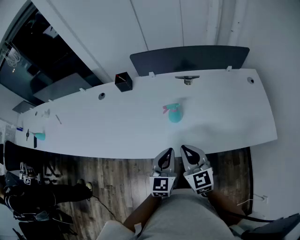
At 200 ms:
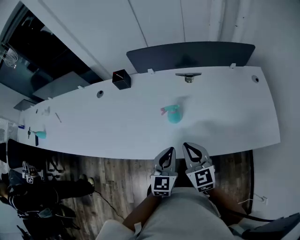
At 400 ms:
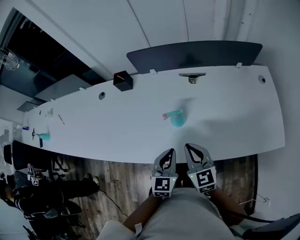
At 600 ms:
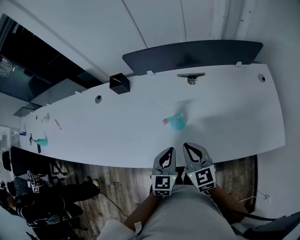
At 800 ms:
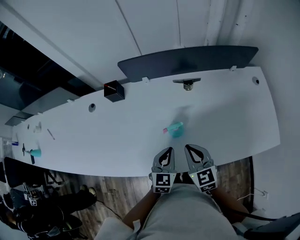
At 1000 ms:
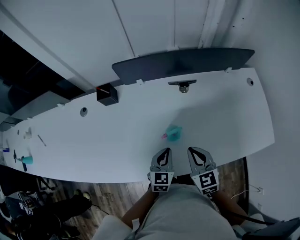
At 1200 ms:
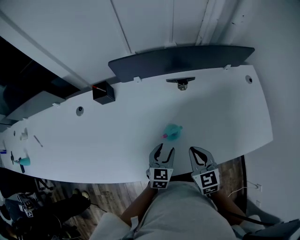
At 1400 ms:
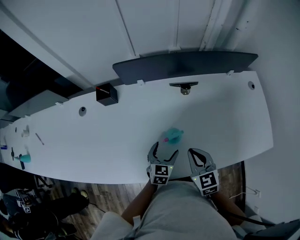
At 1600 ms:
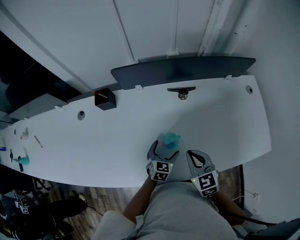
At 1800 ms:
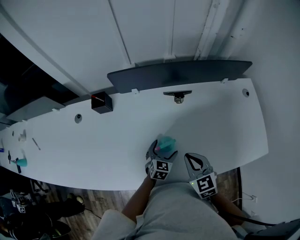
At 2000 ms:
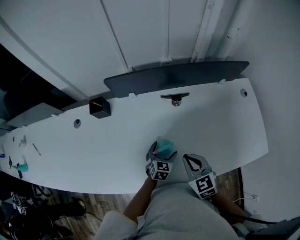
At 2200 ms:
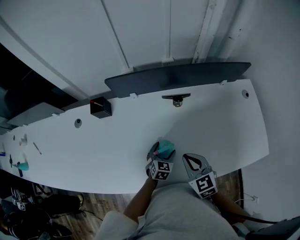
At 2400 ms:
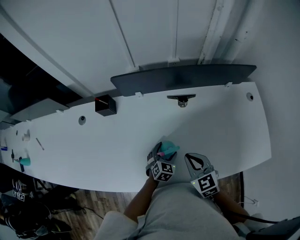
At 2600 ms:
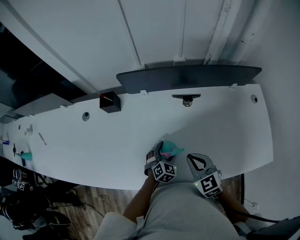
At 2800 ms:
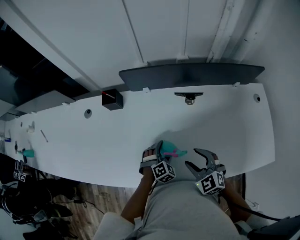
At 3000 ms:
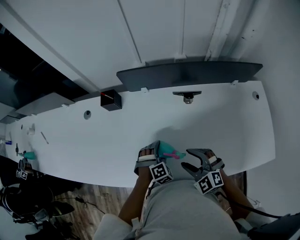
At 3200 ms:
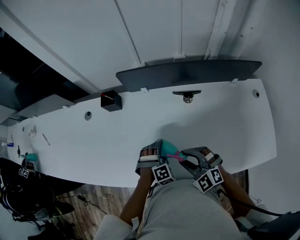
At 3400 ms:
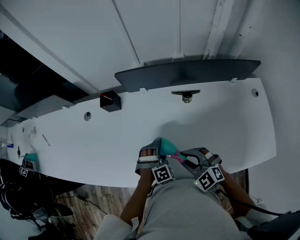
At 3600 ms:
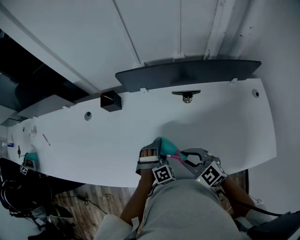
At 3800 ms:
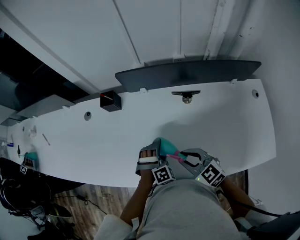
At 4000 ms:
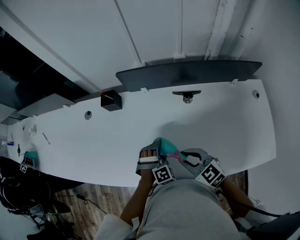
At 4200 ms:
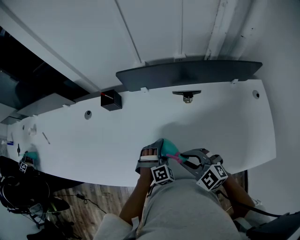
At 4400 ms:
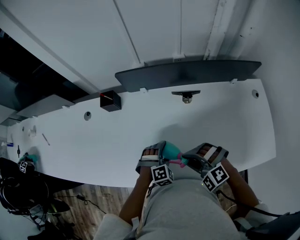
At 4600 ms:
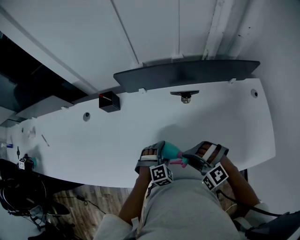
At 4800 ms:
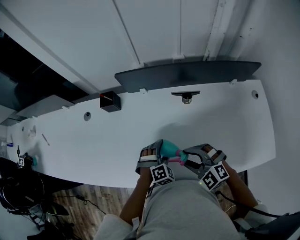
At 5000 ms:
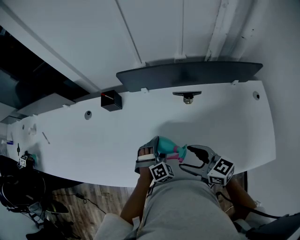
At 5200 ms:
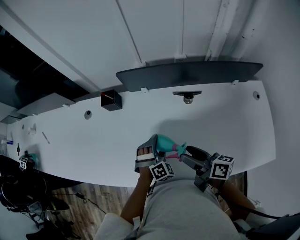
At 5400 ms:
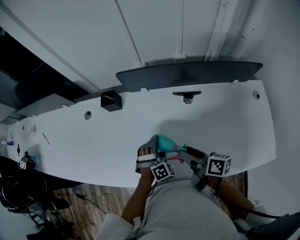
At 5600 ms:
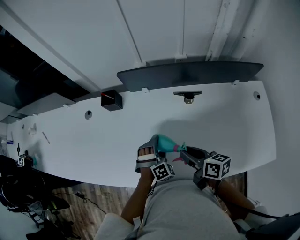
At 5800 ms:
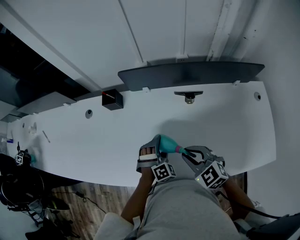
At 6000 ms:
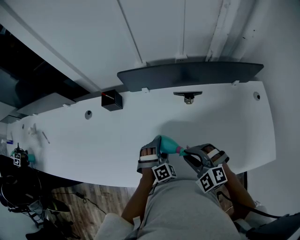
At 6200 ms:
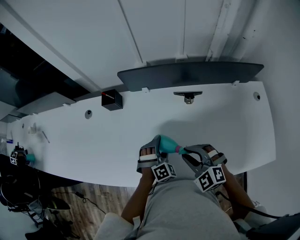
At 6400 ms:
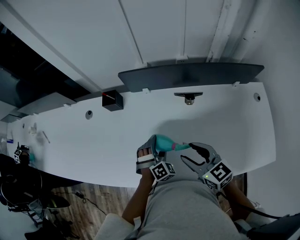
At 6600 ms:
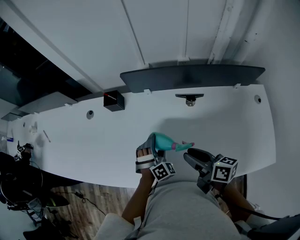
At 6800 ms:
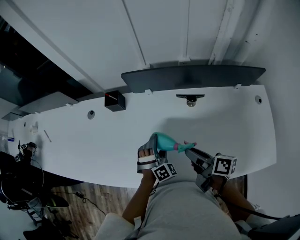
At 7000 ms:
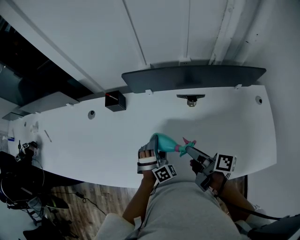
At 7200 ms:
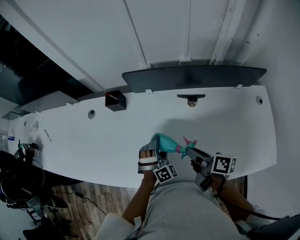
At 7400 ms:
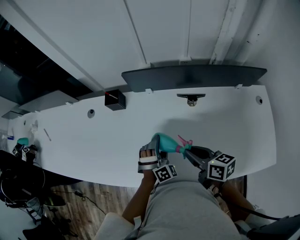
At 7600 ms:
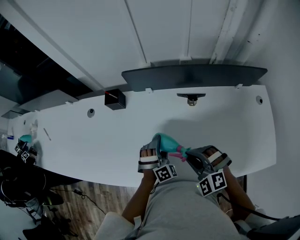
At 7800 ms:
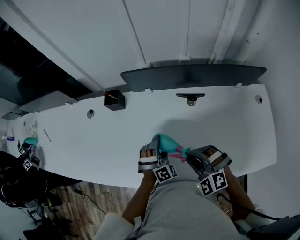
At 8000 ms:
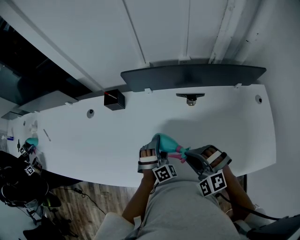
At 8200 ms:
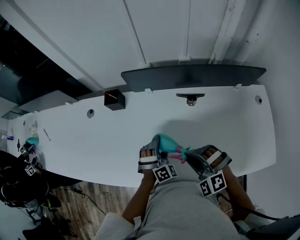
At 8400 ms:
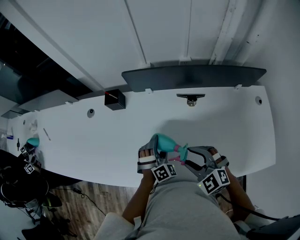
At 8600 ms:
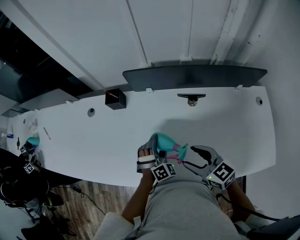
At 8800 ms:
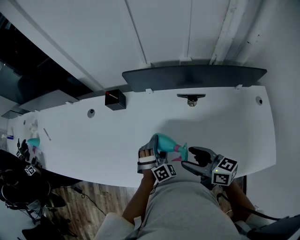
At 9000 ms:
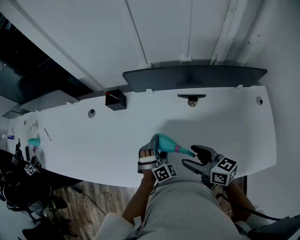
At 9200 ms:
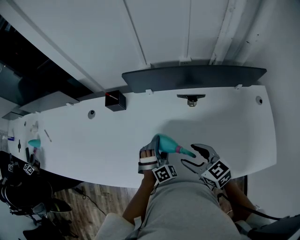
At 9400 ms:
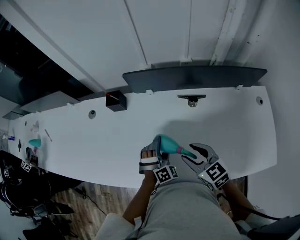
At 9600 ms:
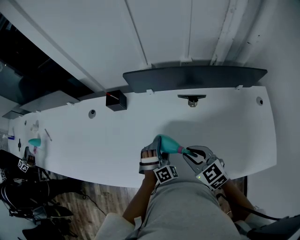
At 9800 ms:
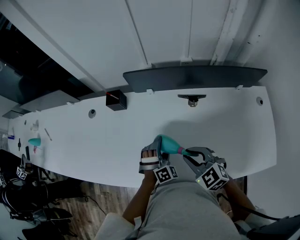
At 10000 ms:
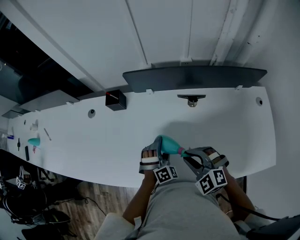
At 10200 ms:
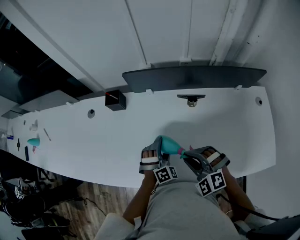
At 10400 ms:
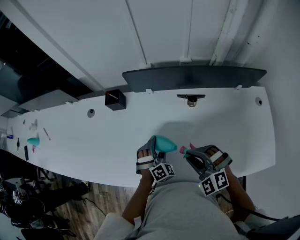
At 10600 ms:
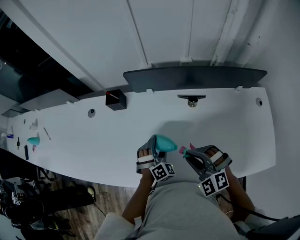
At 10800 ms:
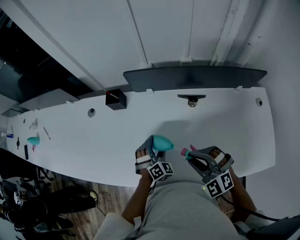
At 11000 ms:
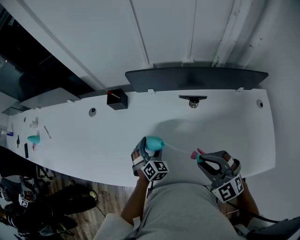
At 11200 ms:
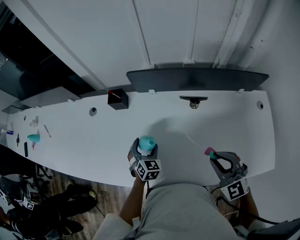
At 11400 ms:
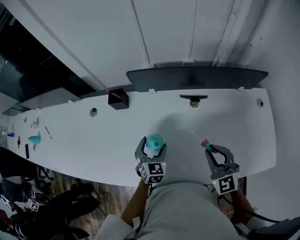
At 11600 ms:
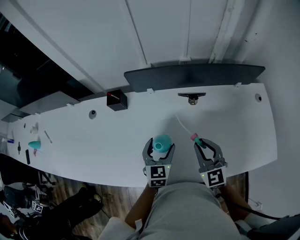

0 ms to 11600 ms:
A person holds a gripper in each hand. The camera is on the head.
0 ms to 1400 ms: Both grippers move forward and downward, approximately 20 cm. The left gripper rotates about 20 degrees, and opens its fingers.
1400 ms to 2800 ms: The right gripper turns by approximately 30 degrees, and opens its fingers, while the left gripper twists about 40 degrees clockwise, seen from behind.
2800 ms to 4400 ms: The right gripper changes its angle by some 40 degrees, and closes.
4400 ms to 5800 ms: The left gripper ends up roughly 5 cm from where it was. Meanwhile the right gripper rotates around the line of its fingers by roughly 40 degrees, clockwise from behind, and opens and closes again.
5800 ms to 7200 ms: The right gripper rolls clockwise, seen from behind, by some 80 degrees.
7200 ms to 8800 ms: The right gripper moves about 5 cm, rotates roughly 40 degrees, and opens its fingers.
8800 ms to 10200 ms: The right gripper rotates around the line of its fingers by approximately 80 degrees, counterclockwise from behind, and closes.
10200 ms to 11600 ms: The left gripper moves upward, some 5 cm, moves approximately 10 cm to the left and comes back, and rolls counterclockwise, seen from behind, by about 60 degrees, while the right gripper goes some 5 cm to the right, and changes its angle by some 50 degrees.

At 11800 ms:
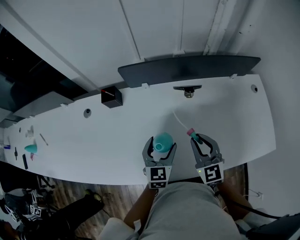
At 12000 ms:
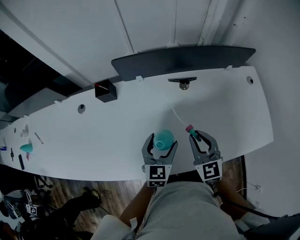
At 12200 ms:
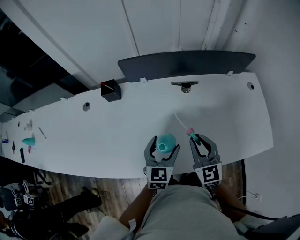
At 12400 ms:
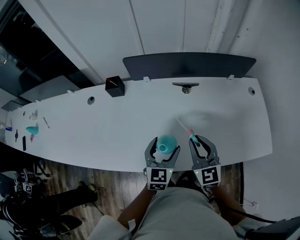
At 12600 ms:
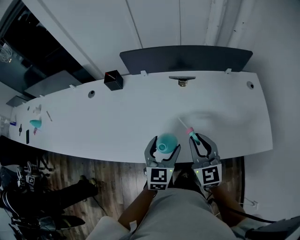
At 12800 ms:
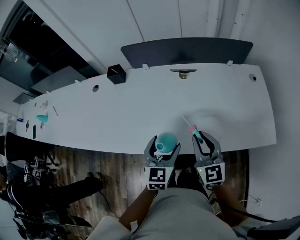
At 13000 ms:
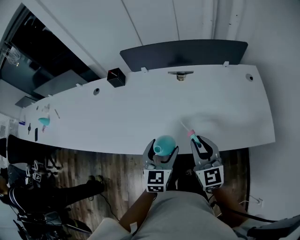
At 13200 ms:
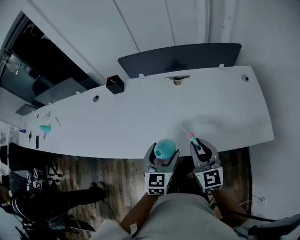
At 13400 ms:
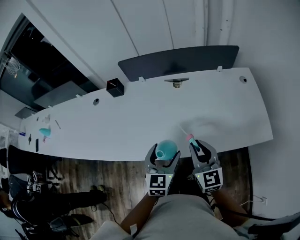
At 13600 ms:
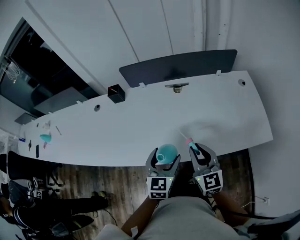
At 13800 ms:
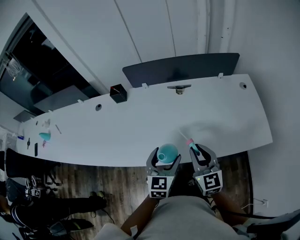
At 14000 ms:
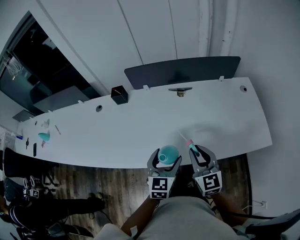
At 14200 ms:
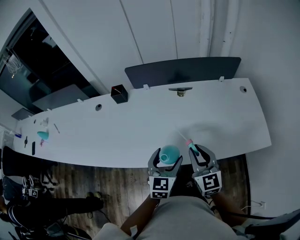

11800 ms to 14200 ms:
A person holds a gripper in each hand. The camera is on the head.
11800 ms to 13000 ms: The grippers both shift backward and to the right by roughly 20 cm.
13000 ms to 14200 ms: The right gripper moves some 5 cm.

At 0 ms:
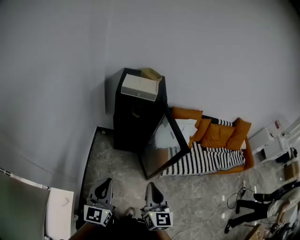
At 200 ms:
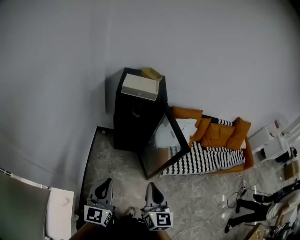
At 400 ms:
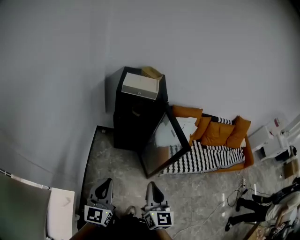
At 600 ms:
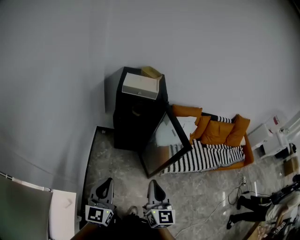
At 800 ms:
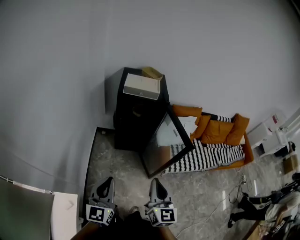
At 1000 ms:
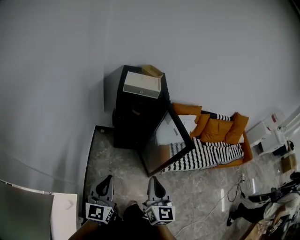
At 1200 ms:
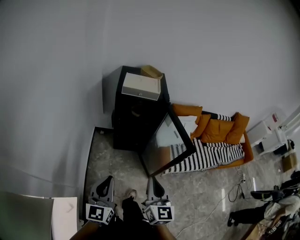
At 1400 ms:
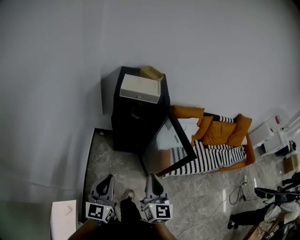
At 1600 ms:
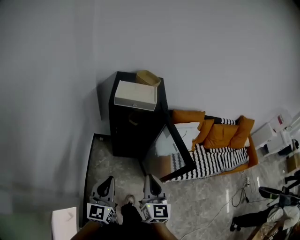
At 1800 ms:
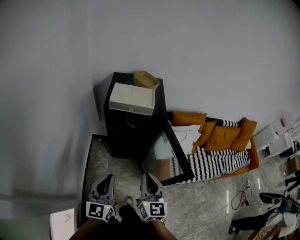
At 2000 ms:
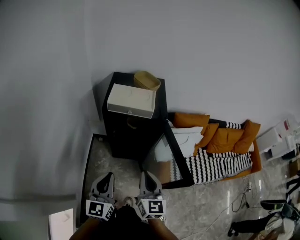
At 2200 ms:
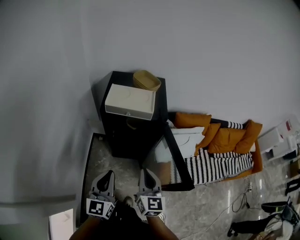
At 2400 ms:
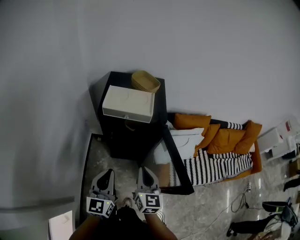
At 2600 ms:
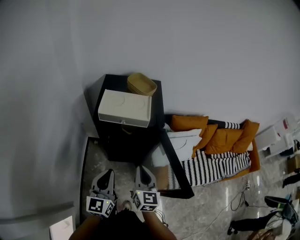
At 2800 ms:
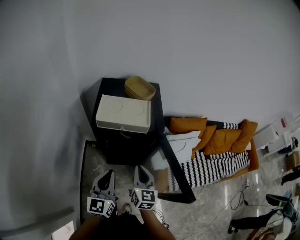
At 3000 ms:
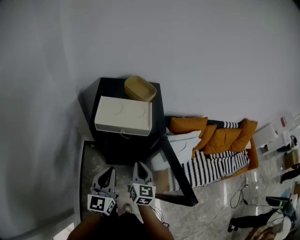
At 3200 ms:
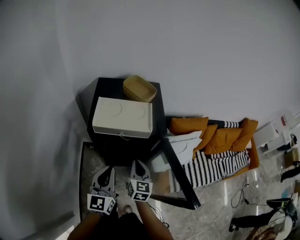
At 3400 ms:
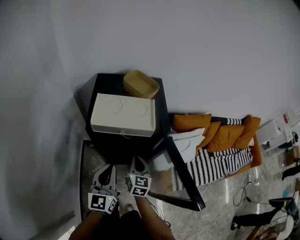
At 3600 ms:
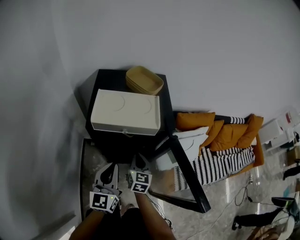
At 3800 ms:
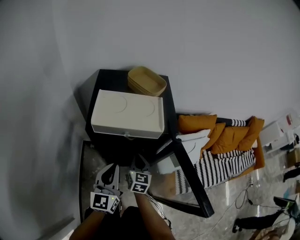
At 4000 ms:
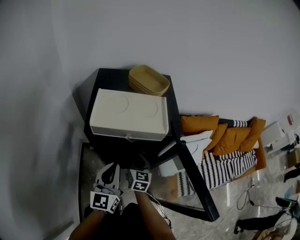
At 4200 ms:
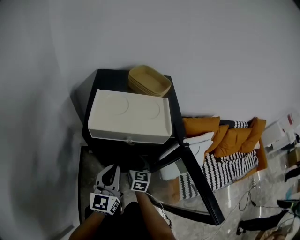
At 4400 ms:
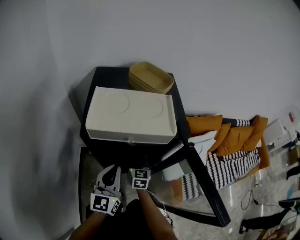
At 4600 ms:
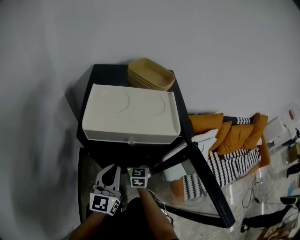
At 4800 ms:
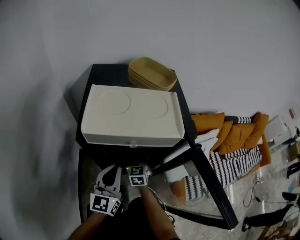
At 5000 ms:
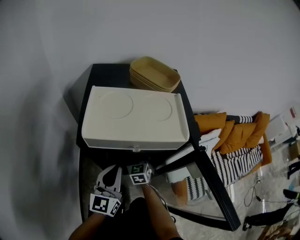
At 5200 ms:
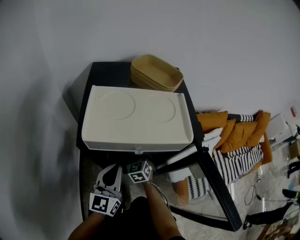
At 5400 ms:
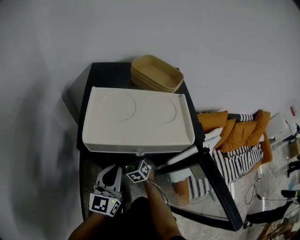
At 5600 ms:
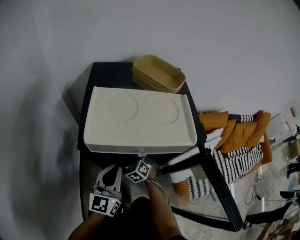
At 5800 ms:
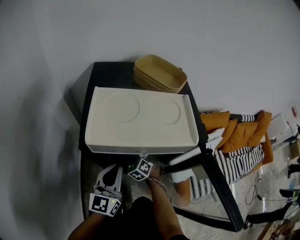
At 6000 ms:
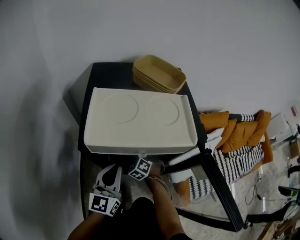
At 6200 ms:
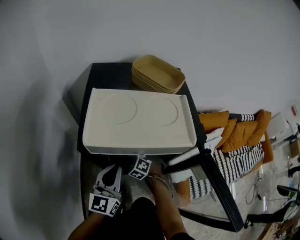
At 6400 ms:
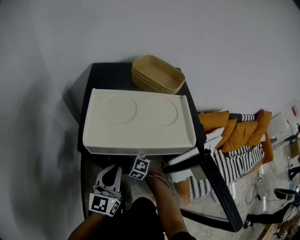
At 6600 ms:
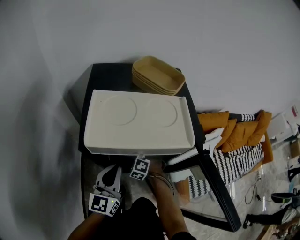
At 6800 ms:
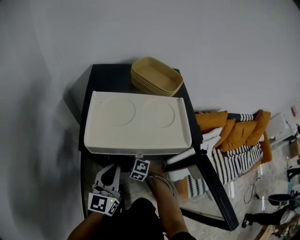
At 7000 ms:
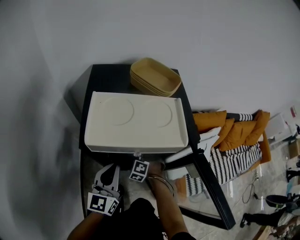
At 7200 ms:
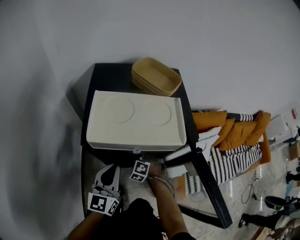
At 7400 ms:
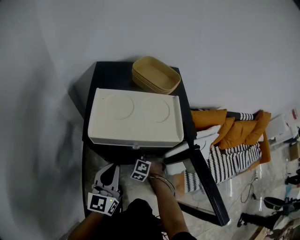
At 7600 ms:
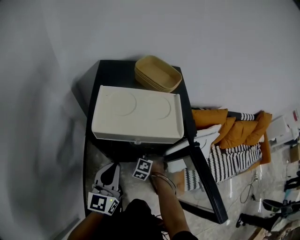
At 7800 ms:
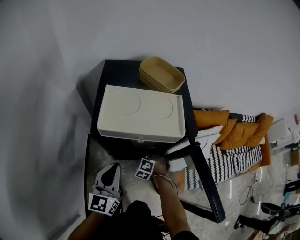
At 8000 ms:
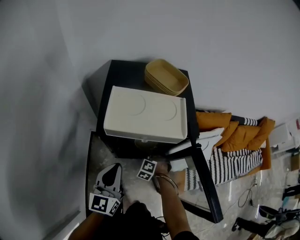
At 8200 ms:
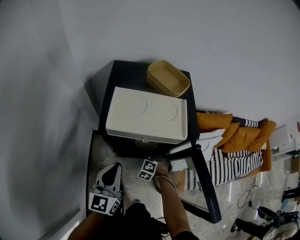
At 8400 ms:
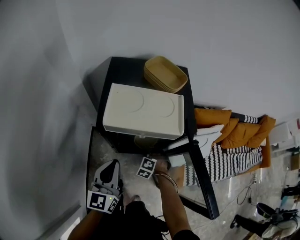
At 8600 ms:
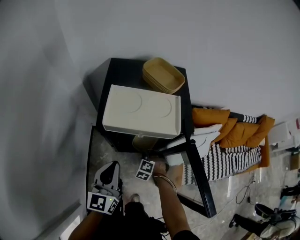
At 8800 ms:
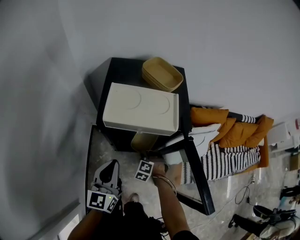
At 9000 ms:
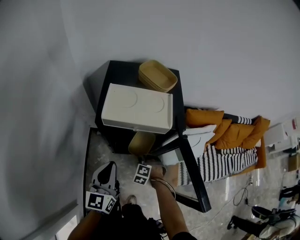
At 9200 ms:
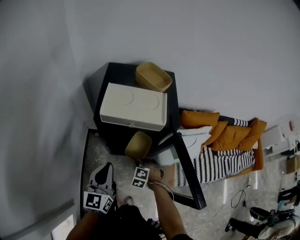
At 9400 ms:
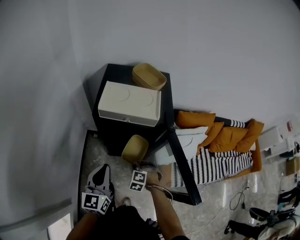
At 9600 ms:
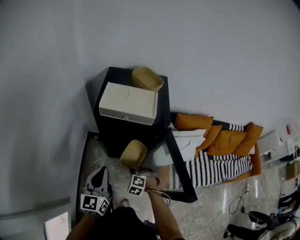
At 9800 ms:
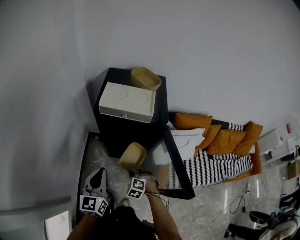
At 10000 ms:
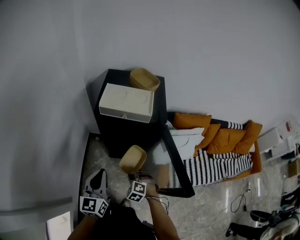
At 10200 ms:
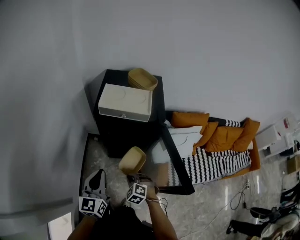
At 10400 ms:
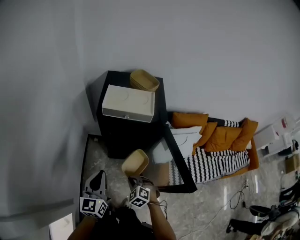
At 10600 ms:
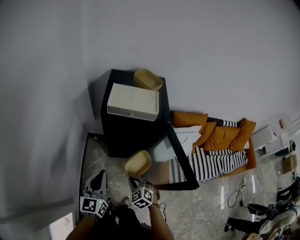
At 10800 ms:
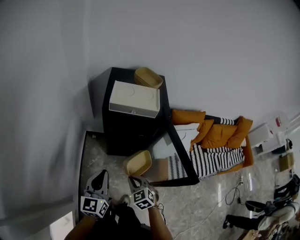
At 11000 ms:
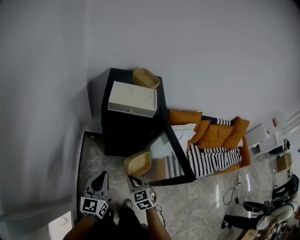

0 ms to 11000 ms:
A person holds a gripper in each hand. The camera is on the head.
0 ms to 1600 ms: Both grippers move forward, some 15 cm.
1600 ms to 3200 ms: The right gripper heads forward and downward, covering approximately 35 cm. The left gripper heads forward, covering roughly 30 cm.
3200 ms to 4800 ms: The grippers both shift downward and forward by some 25 cm. The right gripper rotates some 20 degrees, and opens its fingers.
4800 ms to 6200 ms: The right gripper is displaced downward by about 5 cm, and twists about 50 degrees counterclockwise, seen from behind.
6200 ms to 7800 ms: The right gripper moves backward, roughly 10 cm. Meanwhile the left gripper shifts approximately 10 cm backward and upward.
7800 ms to 9400 ms: The grippers both shift backward and upward by some 15 cm.
9400 ms to 11000 ms: The left gripper moves backward and to the left, about 15 cm. Meanwhile the right gripper heads upward and backward, covering roughly 20 cm, and rolls clockwise, seen from behind, by some 50 degrees.
